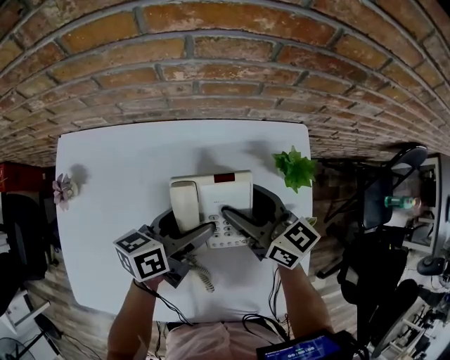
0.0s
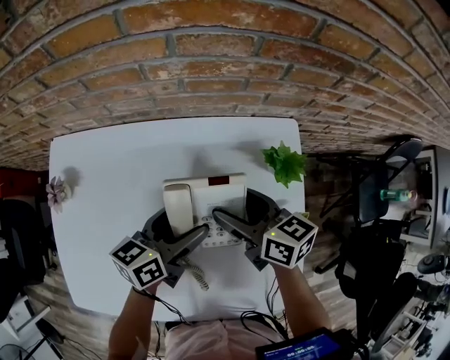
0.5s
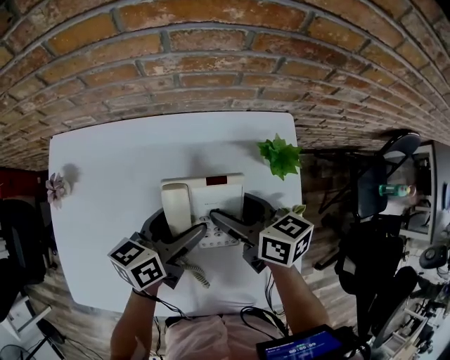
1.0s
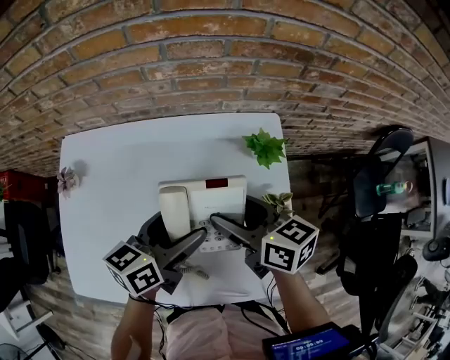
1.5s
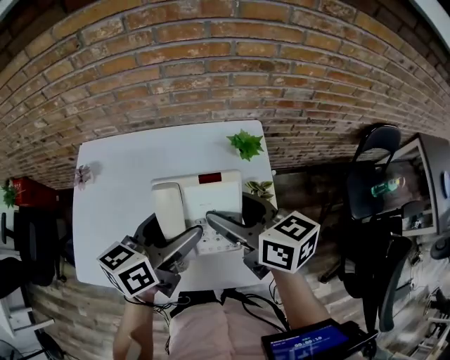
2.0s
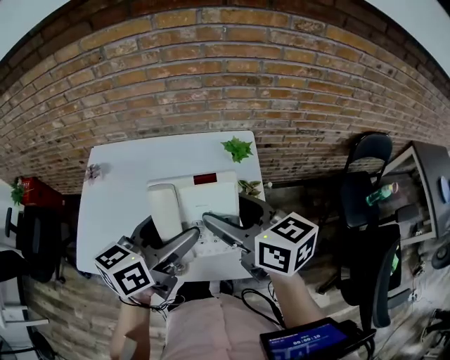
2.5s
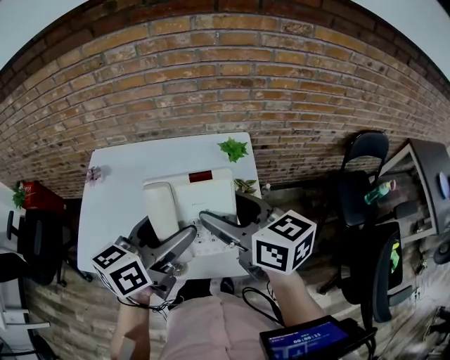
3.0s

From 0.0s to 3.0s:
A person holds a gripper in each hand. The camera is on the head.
From 0.0s to 1.5s: The right gripper heads backward and upward, covering roughly 10 cm, while the left gripper shifts approximately 10 cm upward and backward.
From 1.5s to 3.0s: The two grippers go approximately 20 cm upward and backward.

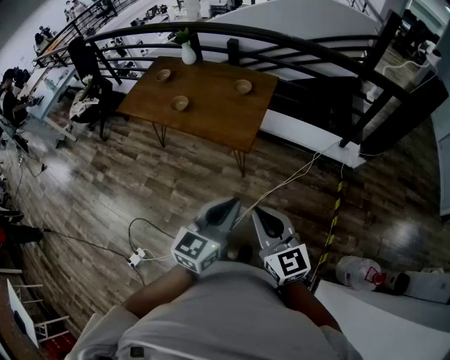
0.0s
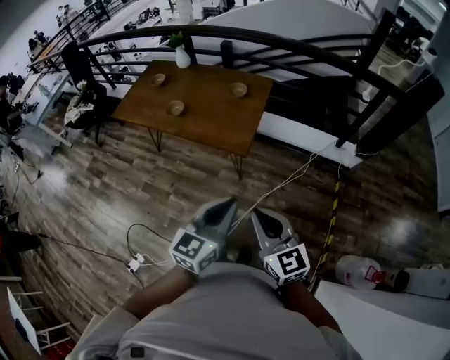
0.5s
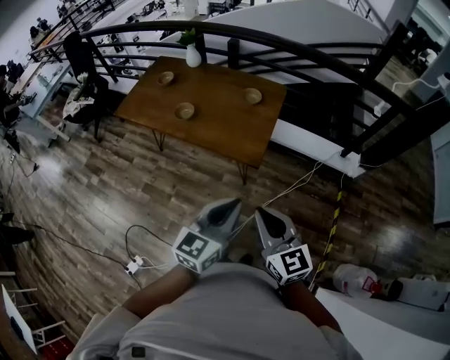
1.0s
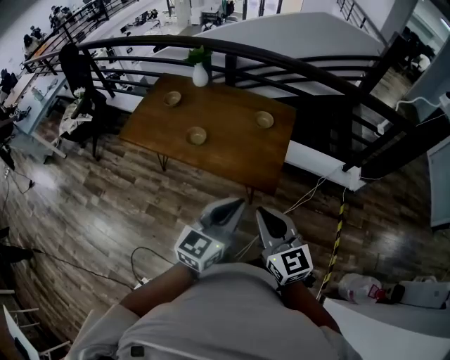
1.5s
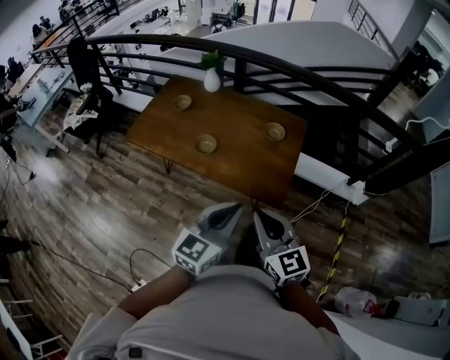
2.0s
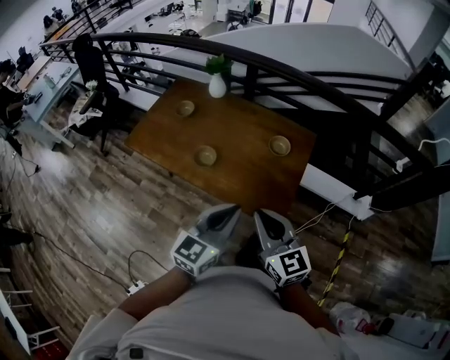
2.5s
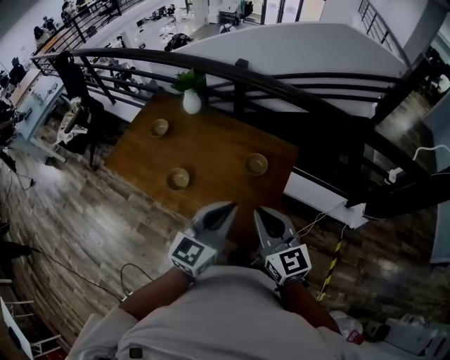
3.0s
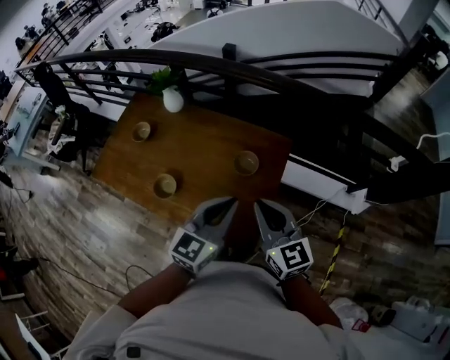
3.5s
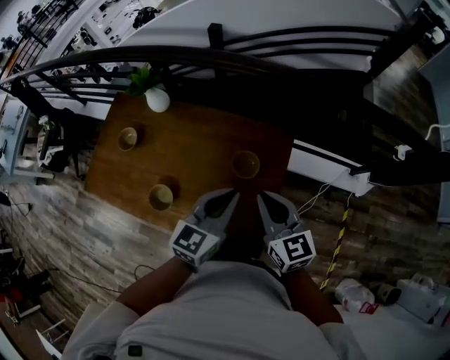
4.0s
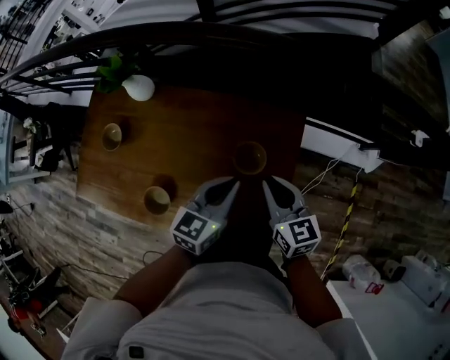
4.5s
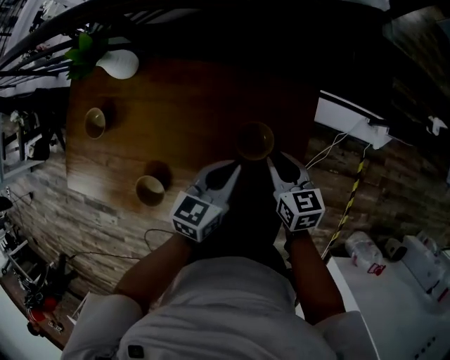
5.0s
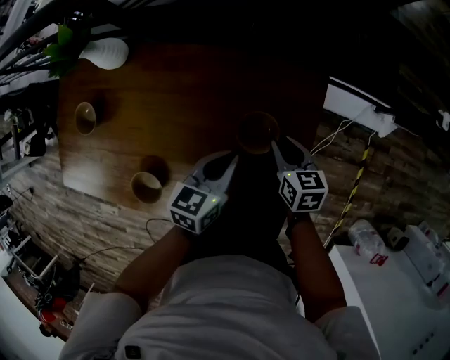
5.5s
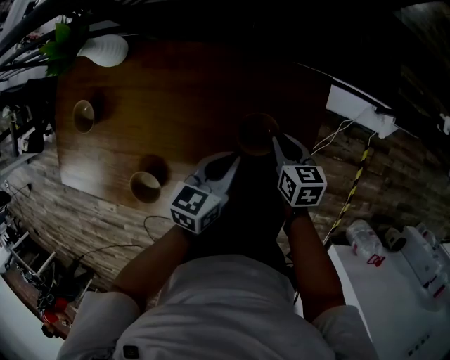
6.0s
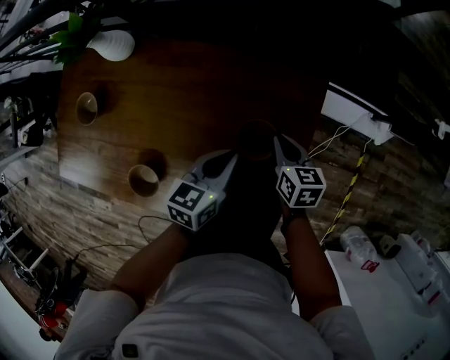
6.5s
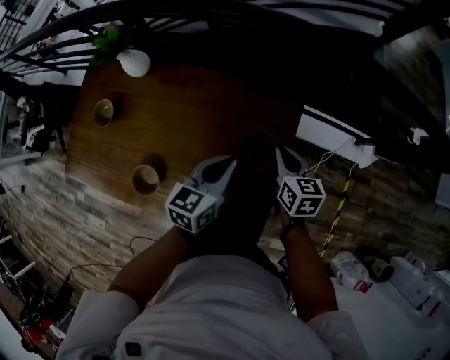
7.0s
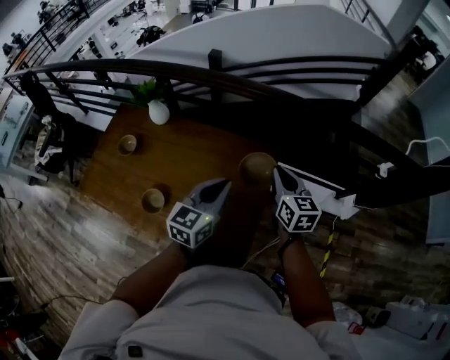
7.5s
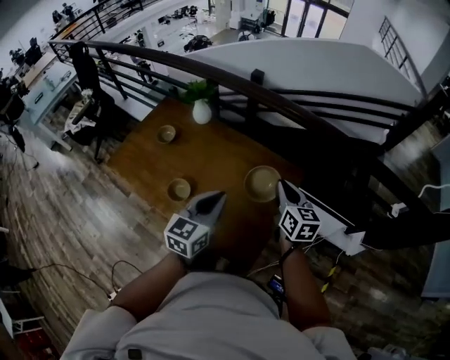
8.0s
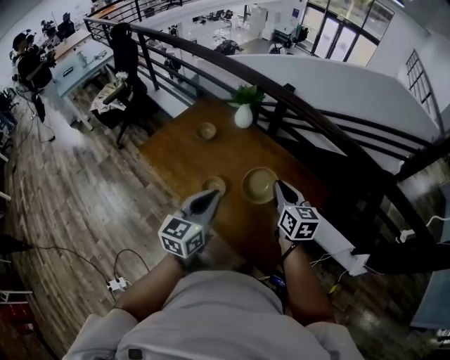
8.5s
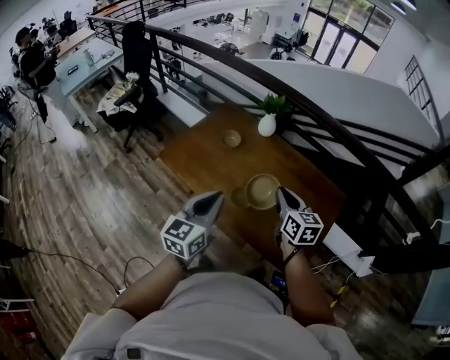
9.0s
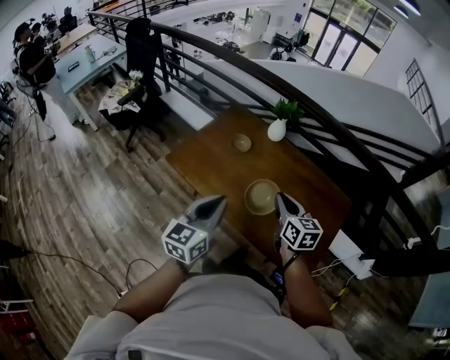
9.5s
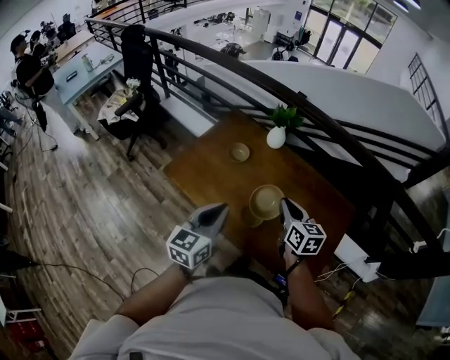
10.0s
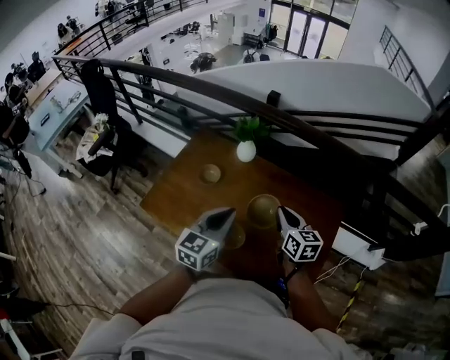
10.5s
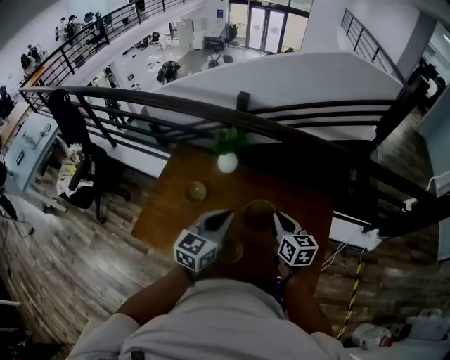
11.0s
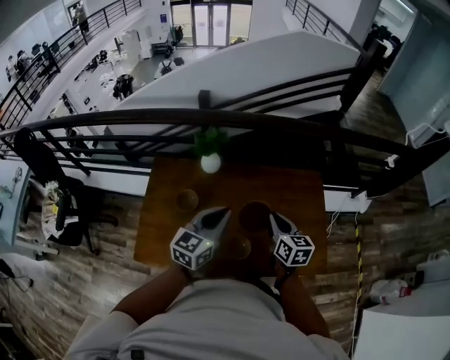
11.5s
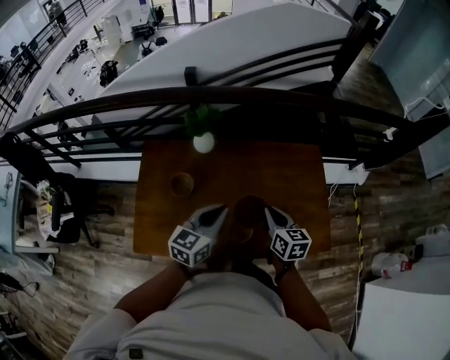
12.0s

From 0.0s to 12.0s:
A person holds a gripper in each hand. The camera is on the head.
From 0.0s to 2.0s: The right gripper is displaced forward and to the left by about 35 cm. Meanwhile the left gripper travels to the left and forward by roughly 35 cm.
From 2.0s to 4.0s: The pair of grippers is taken forward, some 50 cm.
From 4.0s to 6.0s: The left gripper travels downward by roughly 30 cm, and changes its angle by some 30 degrees. Meanwhile the right gripper goes approximately 40 cm downward and forward, and changes its angle by roughly 40 degrees.
From 6.0s to 8.0s: The right gripper shifts about 35 cm upward, and changes its angle by about 30 degrees; the left gripper shifts approximately 40 cm upward and backward, and rotates about 40 degrees.
From 8.0s to 10.0s: The pair of grippers is taken to the left, approximately 40 cm.
From 10.0s to 12.0s: The right gripper rotates roughly 40 degrees. Meanwhile the left gripper shifts by roughly 20 cm, and turns by some 40 degrees.

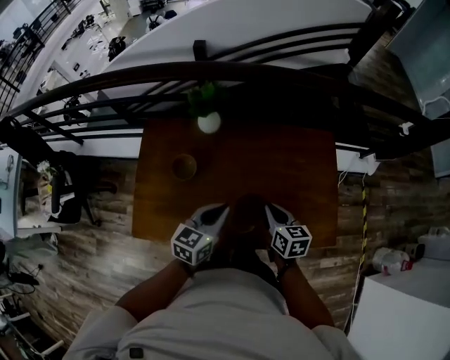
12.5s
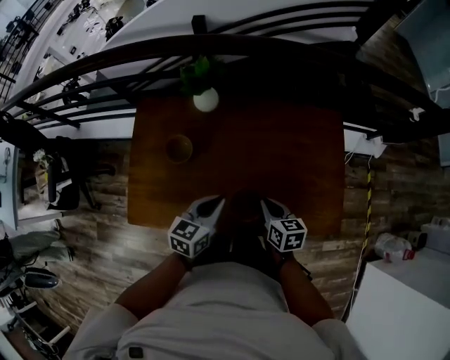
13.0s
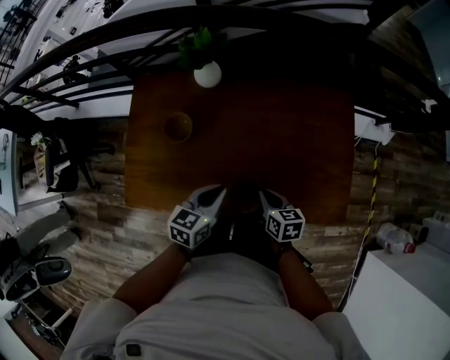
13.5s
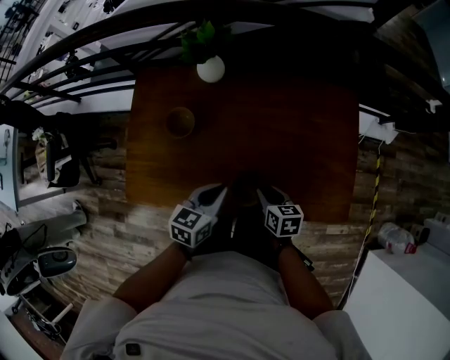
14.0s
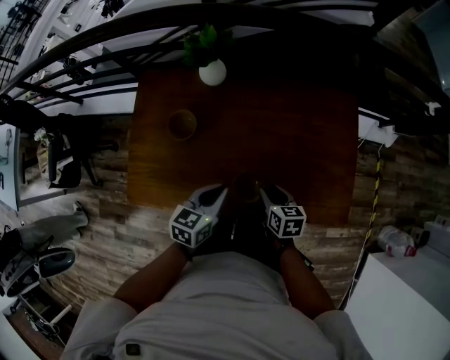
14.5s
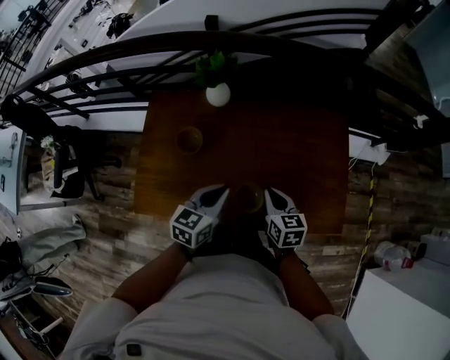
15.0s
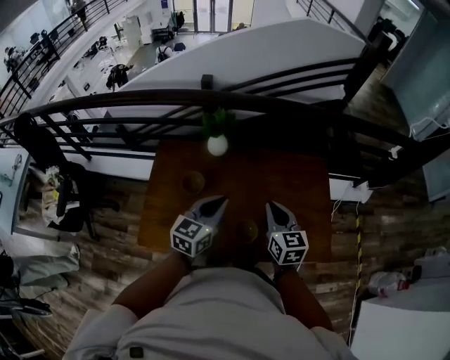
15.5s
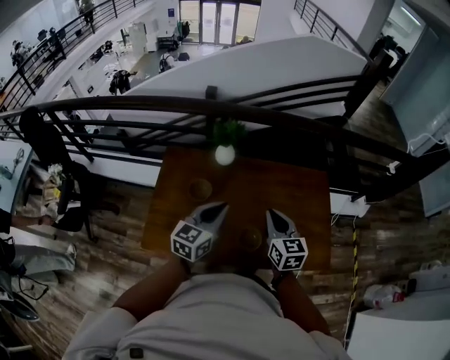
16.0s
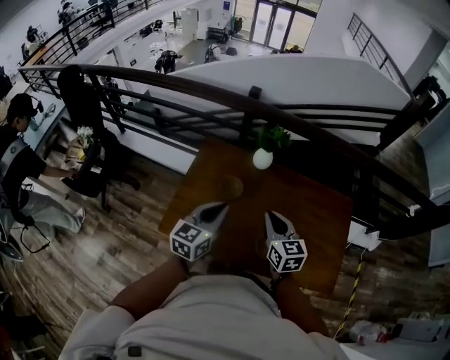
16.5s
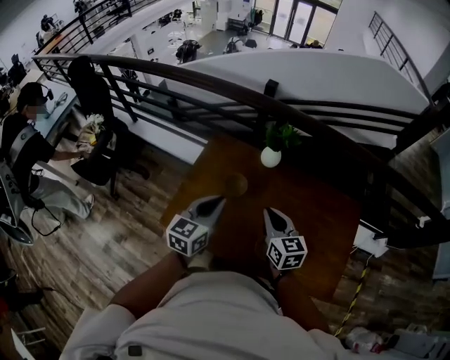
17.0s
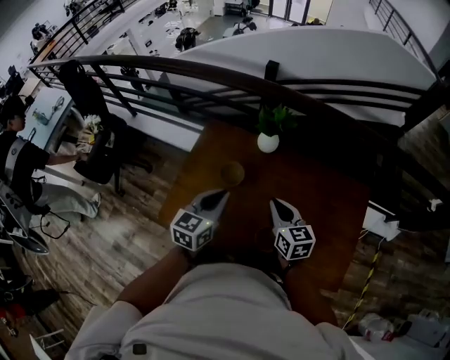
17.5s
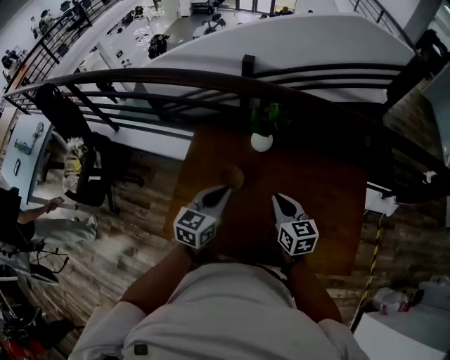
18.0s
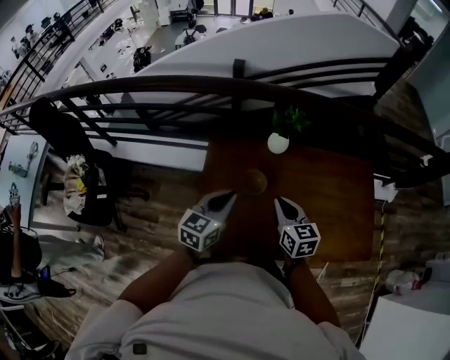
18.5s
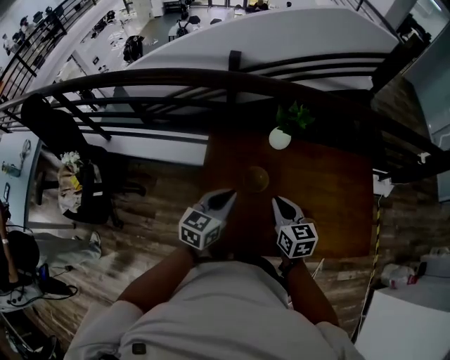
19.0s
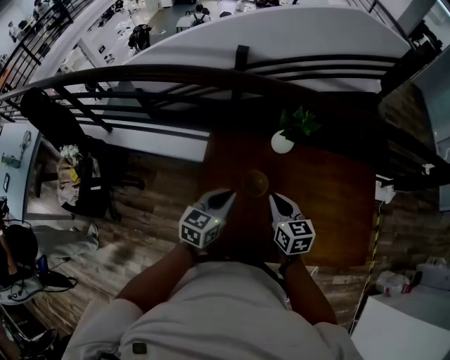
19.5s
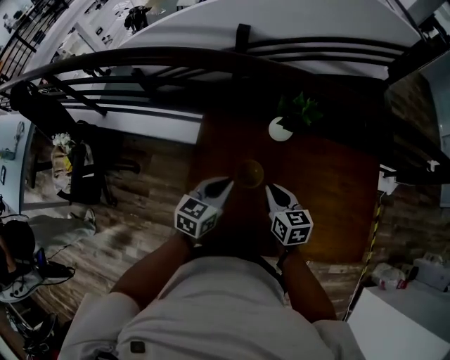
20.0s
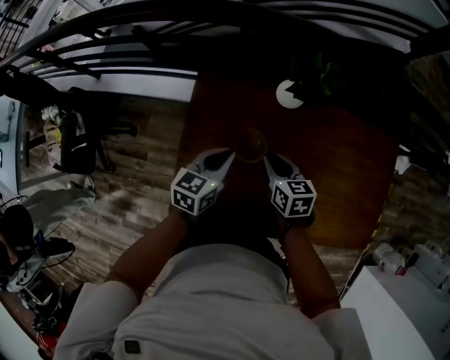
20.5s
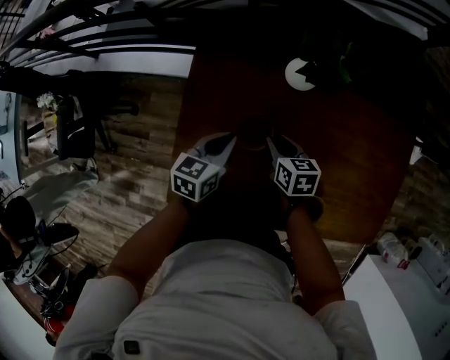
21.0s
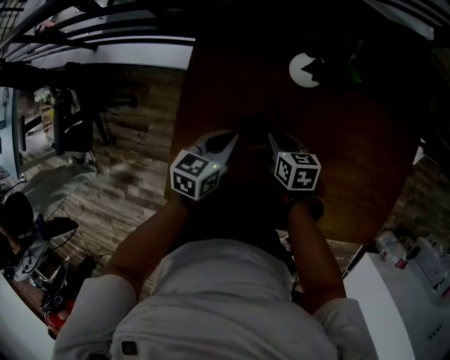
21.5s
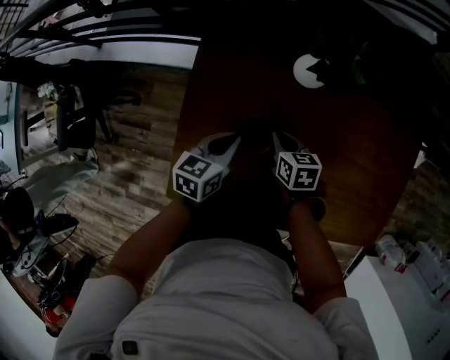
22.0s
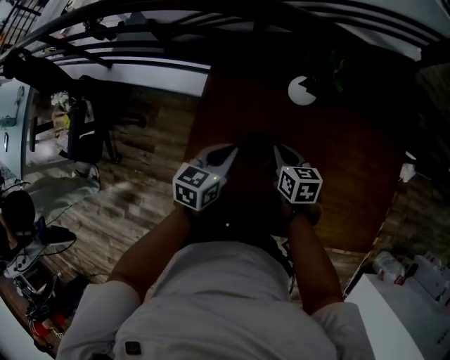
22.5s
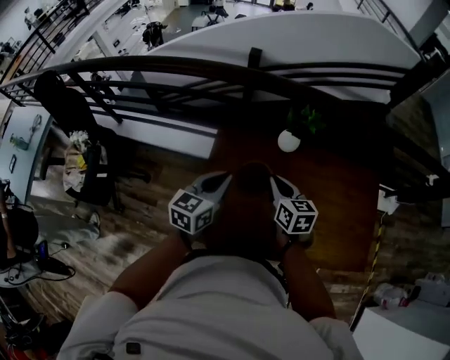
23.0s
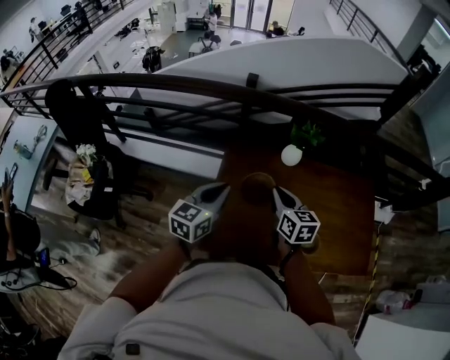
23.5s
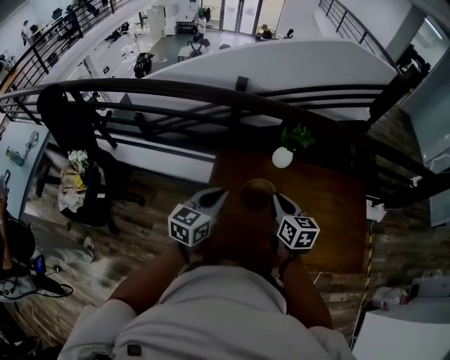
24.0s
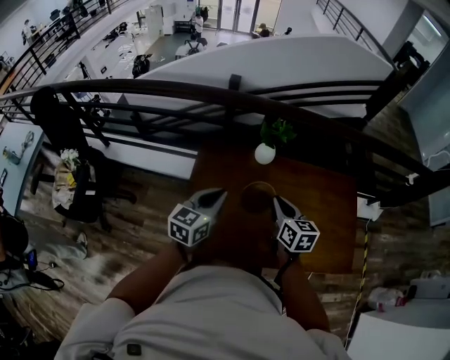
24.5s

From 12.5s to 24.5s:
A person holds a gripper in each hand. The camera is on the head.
From 12.5s to 14.5s: The two grippers go some 10 cm downward. The right gripper opens.
From 14.5s to 16.5s: The grippers both shift upward and to the left by approximately 30 cm. The right gripper changes its angle by about 40 degrees, and closes its fingers. The left gripper turns by approximately 30 degrees.
From 16.5s to 18.5s: Both grippers travel together to the left, forward and downward, roughly 15 cm.
From 18.5s to 20.5s: Both grippers travel together downward and forward, roughly 25 cm.
From 20.5s to 22.5s: The right gripper goes downward and returns, approximately 10 cm each way, while the left gripper travels downward and back again, about 10 cm each way.
From 22.5s to 24.5s: Both grippers travel together upward and backward, some 25 cm. The right gripper changes its angle by some 20 degrees. Meanwhile the left gripper rotates some 20 degrees.
